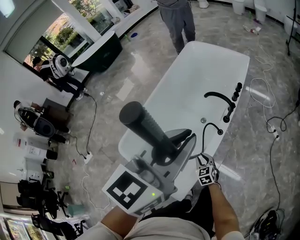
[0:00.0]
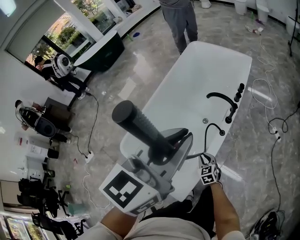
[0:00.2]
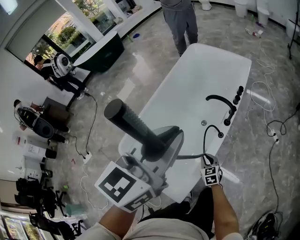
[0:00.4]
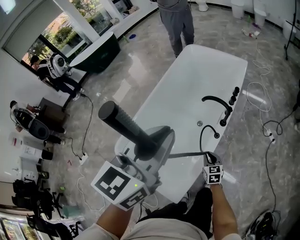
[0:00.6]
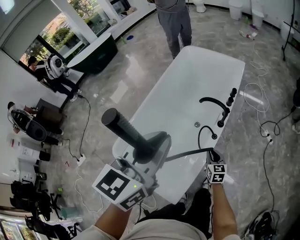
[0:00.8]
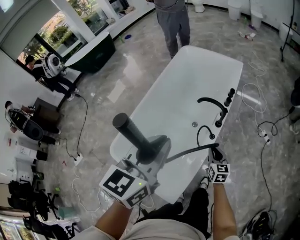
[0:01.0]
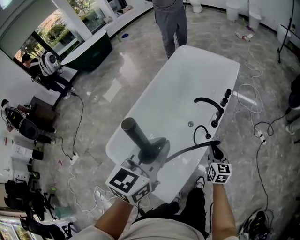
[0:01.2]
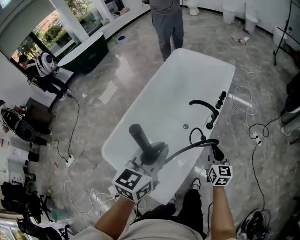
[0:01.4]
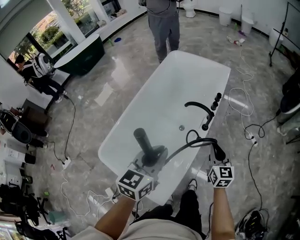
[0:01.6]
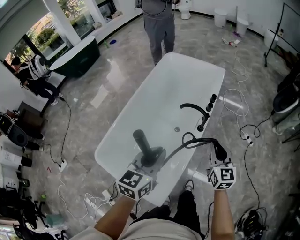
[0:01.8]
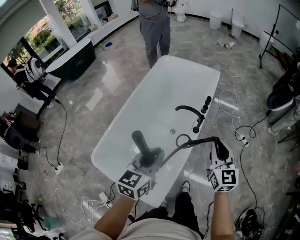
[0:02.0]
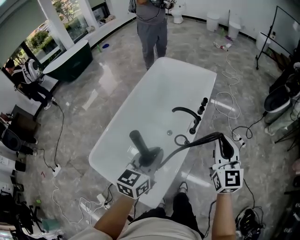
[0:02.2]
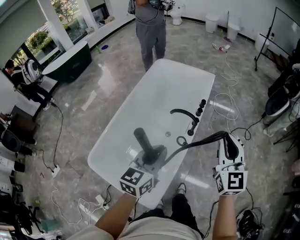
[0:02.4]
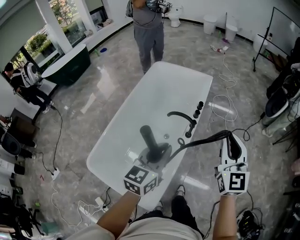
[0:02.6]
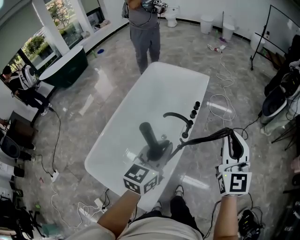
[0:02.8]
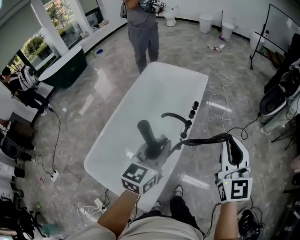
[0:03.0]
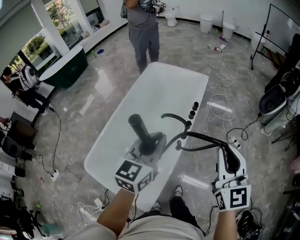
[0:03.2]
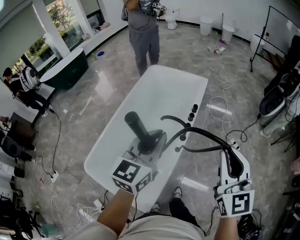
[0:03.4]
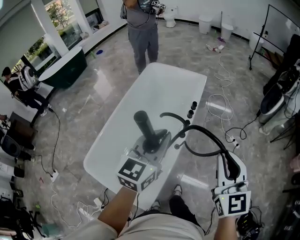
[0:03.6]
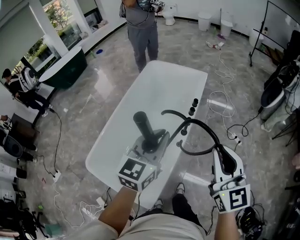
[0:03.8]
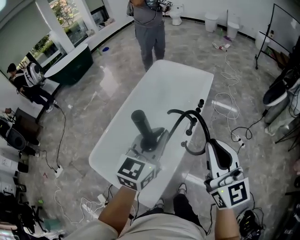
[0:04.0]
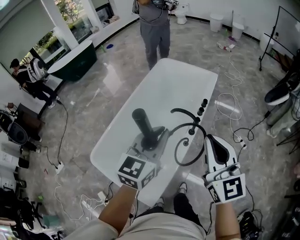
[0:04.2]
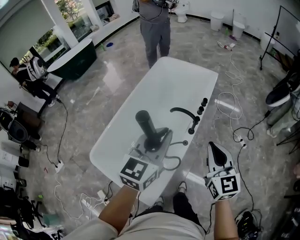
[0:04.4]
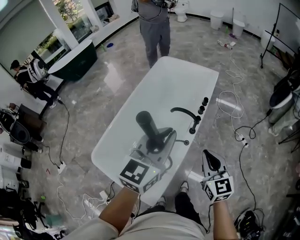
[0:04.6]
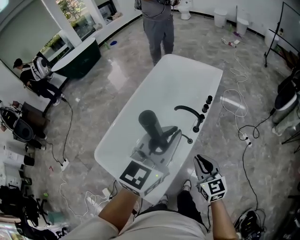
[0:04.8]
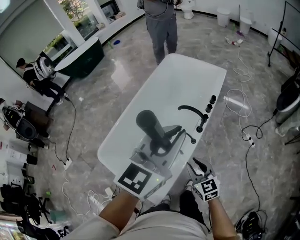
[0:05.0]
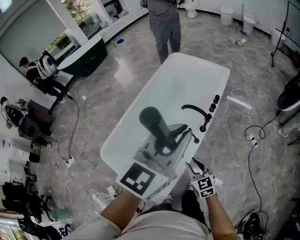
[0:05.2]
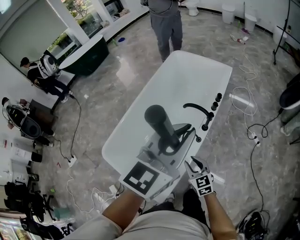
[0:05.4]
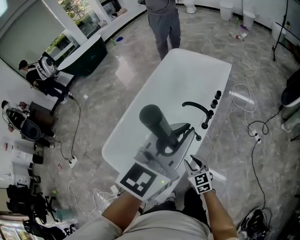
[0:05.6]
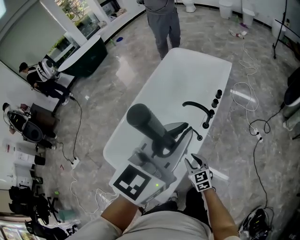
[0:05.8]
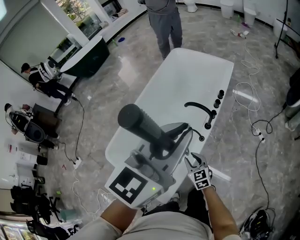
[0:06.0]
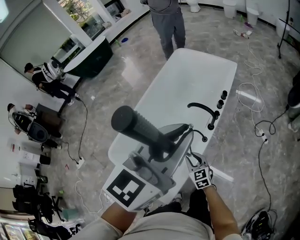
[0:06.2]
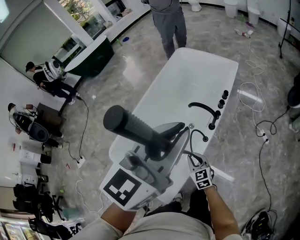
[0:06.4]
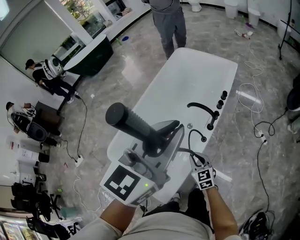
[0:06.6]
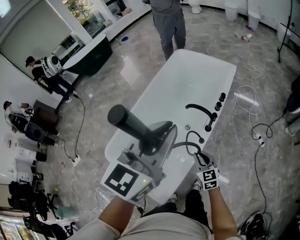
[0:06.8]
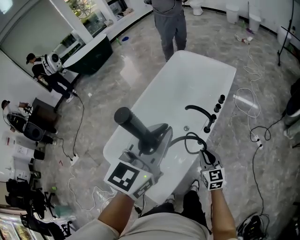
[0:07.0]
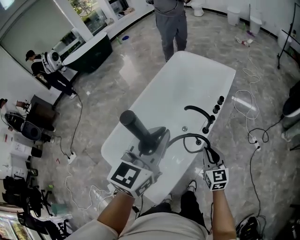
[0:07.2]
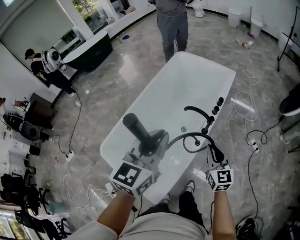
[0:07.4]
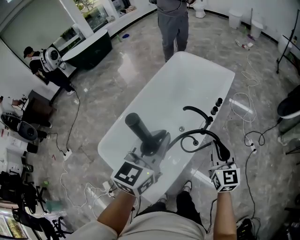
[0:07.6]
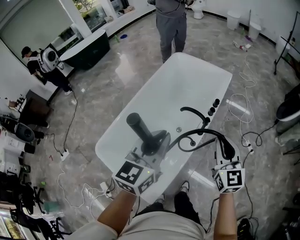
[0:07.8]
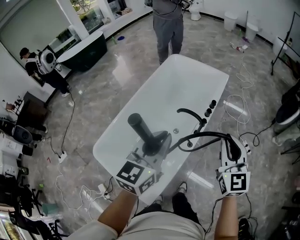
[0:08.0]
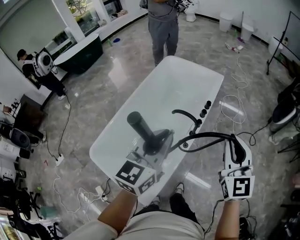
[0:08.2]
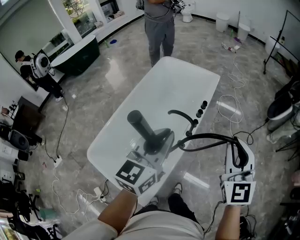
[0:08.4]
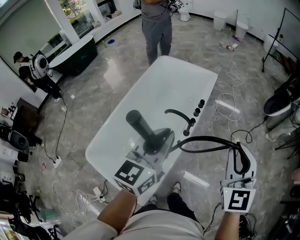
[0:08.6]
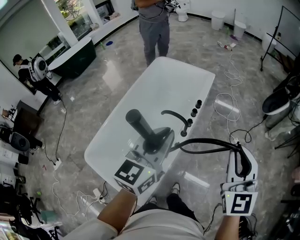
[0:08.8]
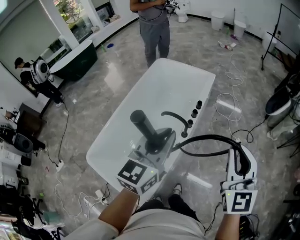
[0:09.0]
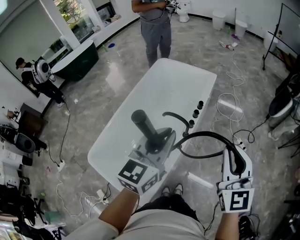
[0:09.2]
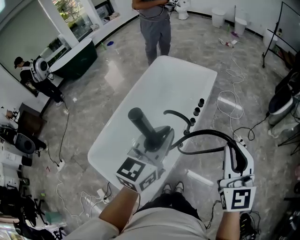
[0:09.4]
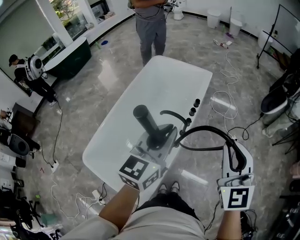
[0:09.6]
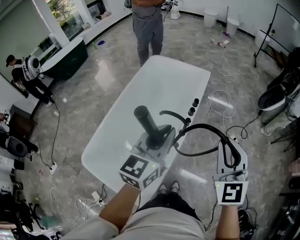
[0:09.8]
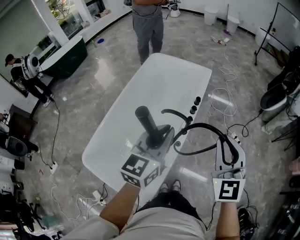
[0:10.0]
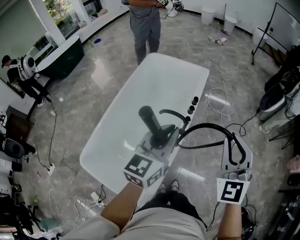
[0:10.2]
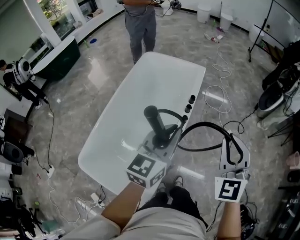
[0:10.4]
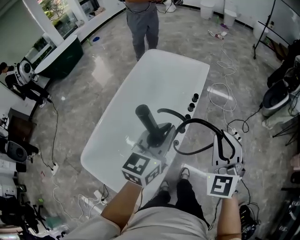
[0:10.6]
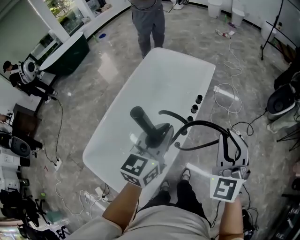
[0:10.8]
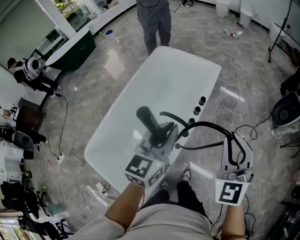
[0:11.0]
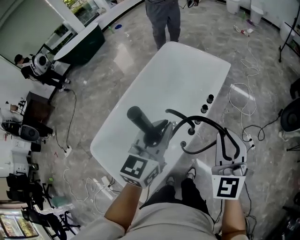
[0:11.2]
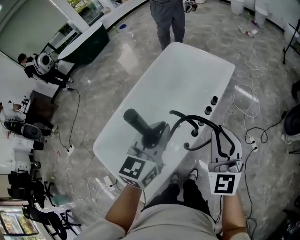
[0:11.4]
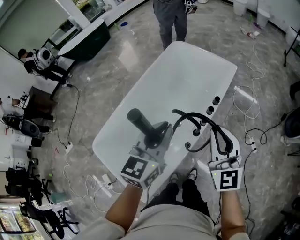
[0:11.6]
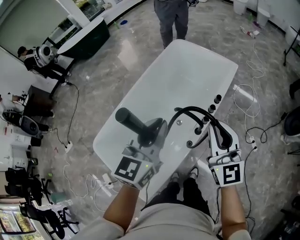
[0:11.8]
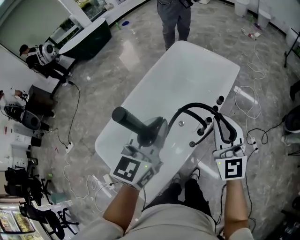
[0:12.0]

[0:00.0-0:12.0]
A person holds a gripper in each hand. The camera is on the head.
0:00.0 to 0:01.6: The left gripper heads downward, covering about 15 cm. The right gripper travels upward and to the right by roughly 25 cm, and rotates about 30 degrees.
0:01.6 to 0:03.0: The right gripper goes about 25 cm upward, and changes its angle by roughly 20 degrees. Meanwhile the left gripper is displaced to the right, forward and upward by about 15 cm.
0:03.0 to 0:04.4: The right gripper shifts about 10 cm downward and to the left.
0:04.4 to 0:06.0: The right gripper moves downward and to the left, some 30 cm, turns by some 30 degrees, and opens up, while the left gripper heads upward, covering about 10 cm.
0:06.0 to 0:07.6: The right gripper goes approximately 25 cm upward and to the right, and swivels roughly 20 degrees. Meanwhile the left gripper moves downward and to the left, some 10 cm.
0:07.6 to 0:09.0: The left gripper is displaced to the right by approximately 10 cm. Meanwhile the right gripper is displaced upward and to the right by roughly 20 cm, and swivels some 20 degrees.
0:09.0 to 0:10.4: The left gripper shifts by some 5 cm. Meanwhile the right gripper goes some 5 cm to the left, and swivels roughly 20 degrees.
0:10.4 to 0:12.0: The left gripper changes place by about 10 cm, and swivels approximately 20 degrees, while the right gripper ends up roughly 15 cm from where it was, and swivels about 40 degrees.

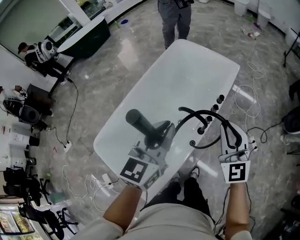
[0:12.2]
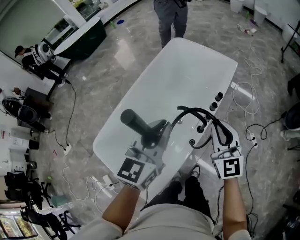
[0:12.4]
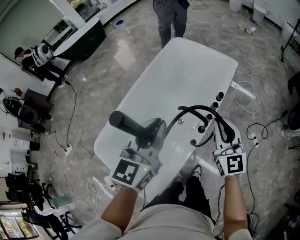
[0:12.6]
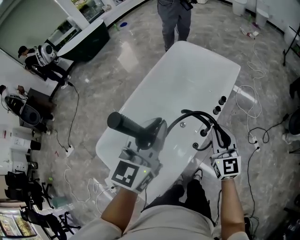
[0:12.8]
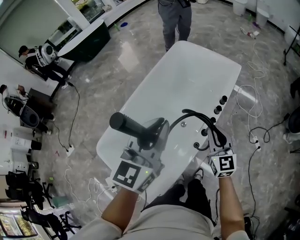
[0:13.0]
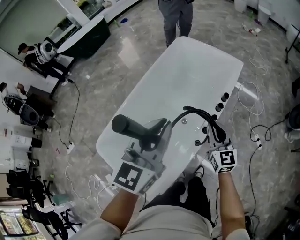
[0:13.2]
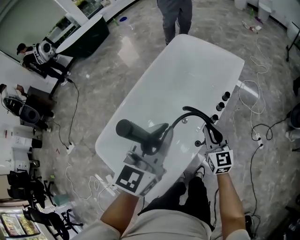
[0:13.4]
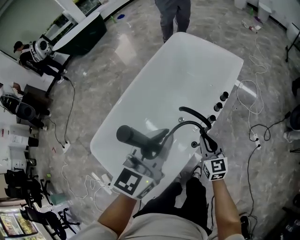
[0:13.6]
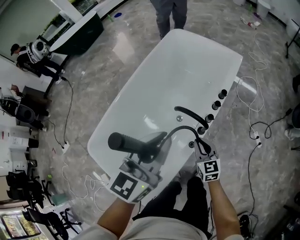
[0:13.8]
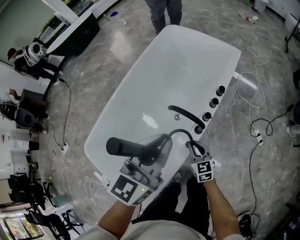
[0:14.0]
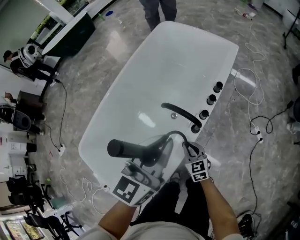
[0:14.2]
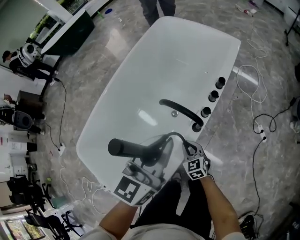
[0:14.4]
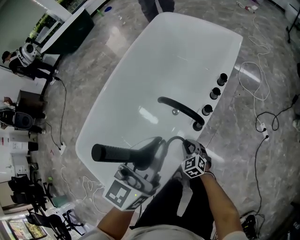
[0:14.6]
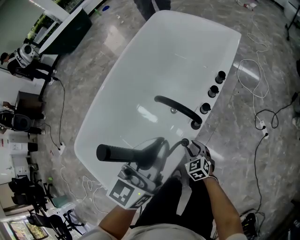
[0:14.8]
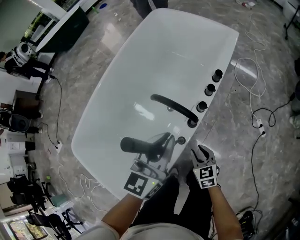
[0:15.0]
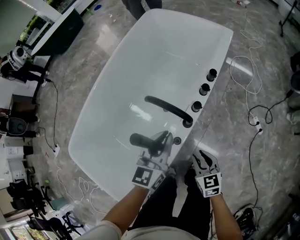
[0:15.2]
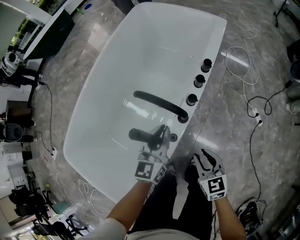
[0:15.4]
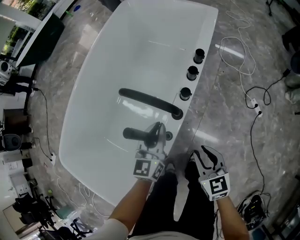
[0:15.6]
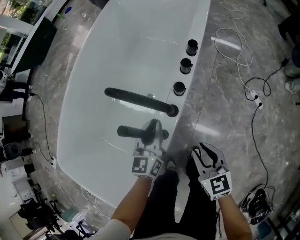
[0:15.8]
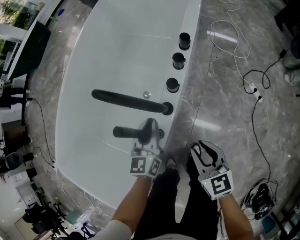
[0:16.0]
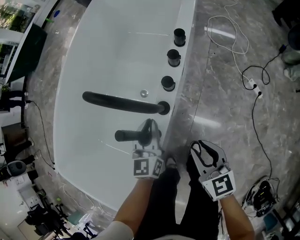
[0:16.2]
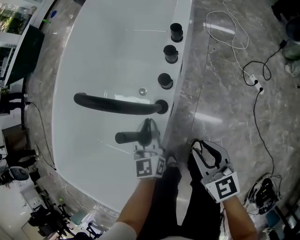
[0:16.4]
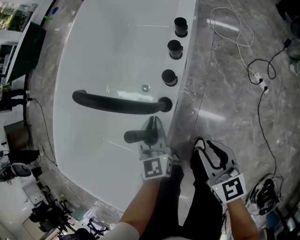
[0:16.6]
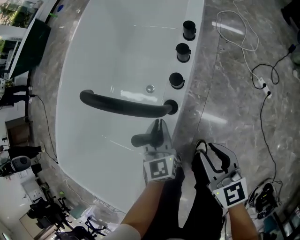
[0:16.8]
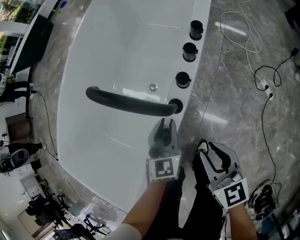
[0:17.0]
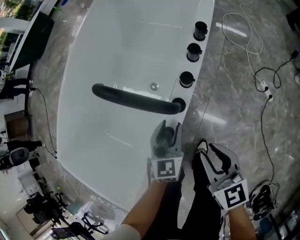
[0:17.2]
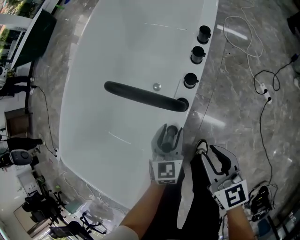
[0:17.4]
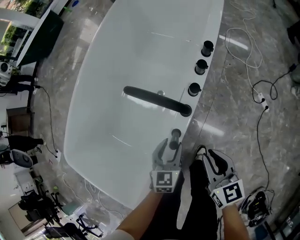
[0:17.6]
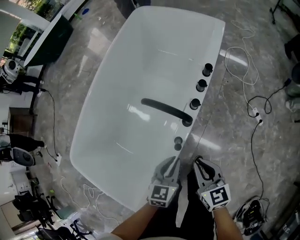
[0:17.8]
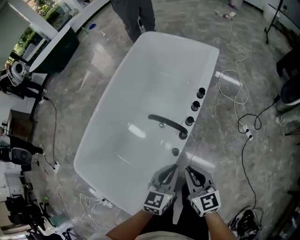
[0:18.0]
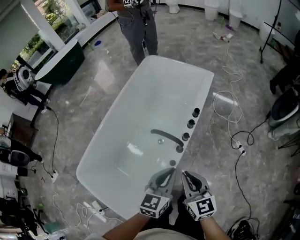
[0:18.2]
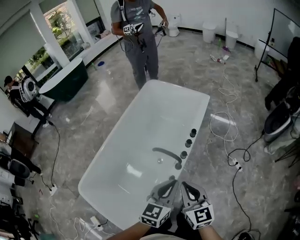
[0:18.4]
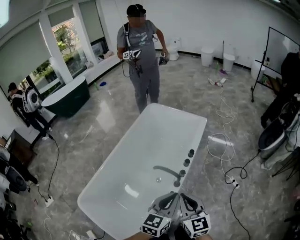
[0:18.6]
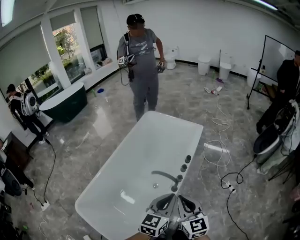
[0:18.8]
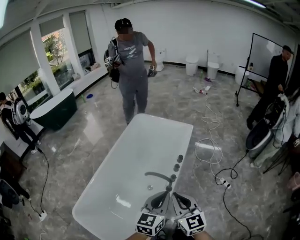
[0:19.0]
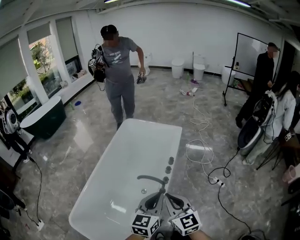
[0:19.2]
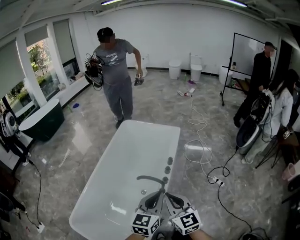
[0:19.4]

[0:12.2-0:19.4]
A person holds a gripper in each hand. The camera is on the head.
0:12.2 to 0:13.6: The right gripper goes approximately 25 cm downward, and turns by roughly 30 degrees.
0:13.6 to 0:15.0: The right gripper goes approximately 25 cm downward, and rotates approximately 20 degrees; the left gripper moves downward and to the right, approximately 20 cm.
0:15.0 to 0:16.6: The left gripper heads downward, covering about 25 cm, while the right gripper moves to the right, some 10 cm.
0:16.6 to 0:18.0: The left gripper moves upward and backward, about 25 cm, turns by roughly 20 degrees, and opens and closes again. Meanwhile the right gripper travels upward and to the left by some 20 cm, and closes.
0:18.0 to 0:19.4: The two grippers go approximately 20 cm upward. The right gripper rotates roughly 20 degrees.

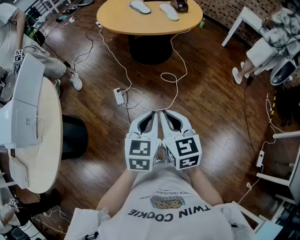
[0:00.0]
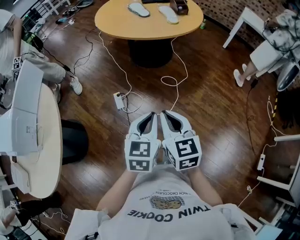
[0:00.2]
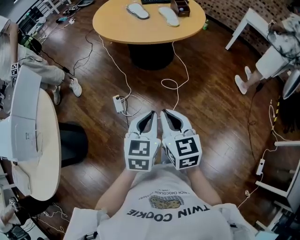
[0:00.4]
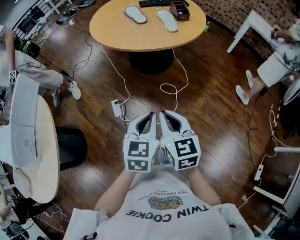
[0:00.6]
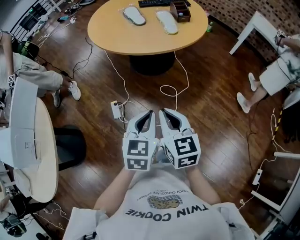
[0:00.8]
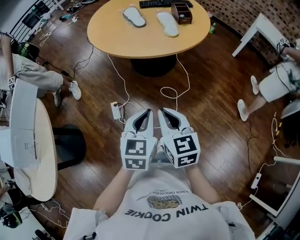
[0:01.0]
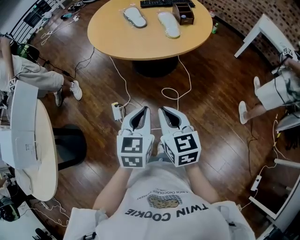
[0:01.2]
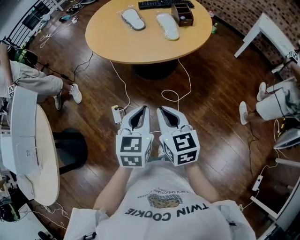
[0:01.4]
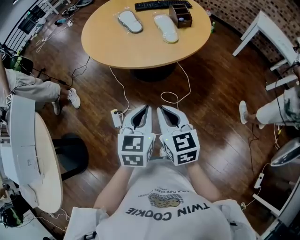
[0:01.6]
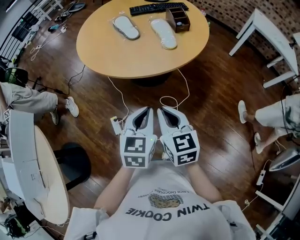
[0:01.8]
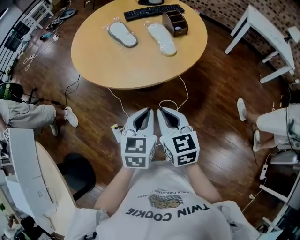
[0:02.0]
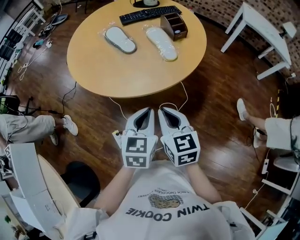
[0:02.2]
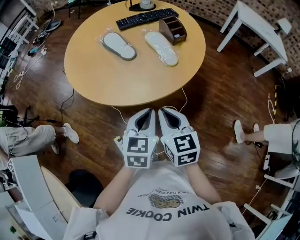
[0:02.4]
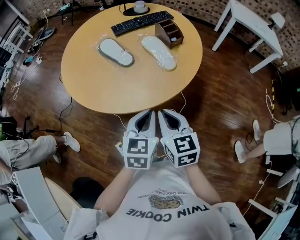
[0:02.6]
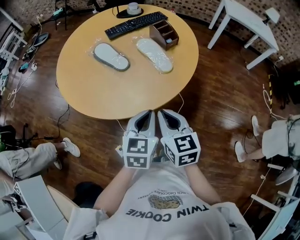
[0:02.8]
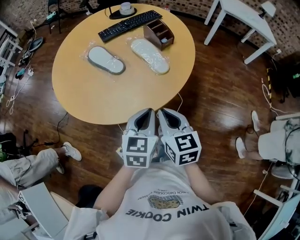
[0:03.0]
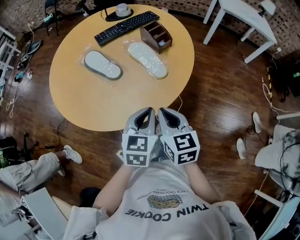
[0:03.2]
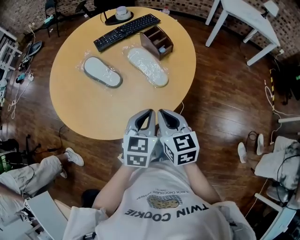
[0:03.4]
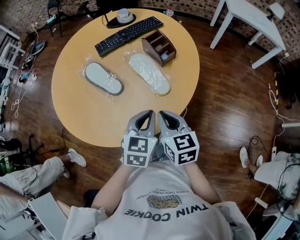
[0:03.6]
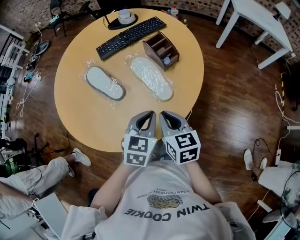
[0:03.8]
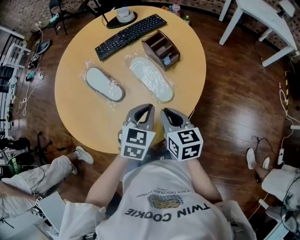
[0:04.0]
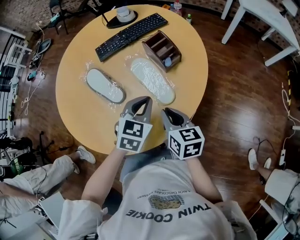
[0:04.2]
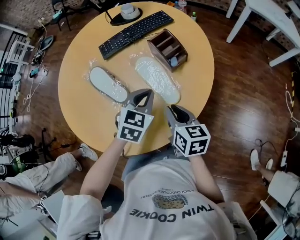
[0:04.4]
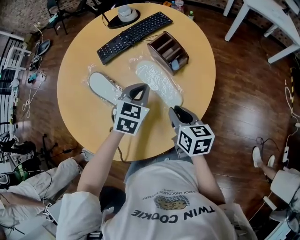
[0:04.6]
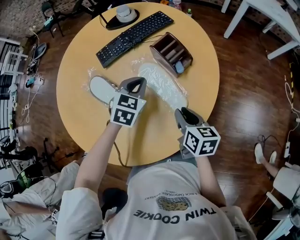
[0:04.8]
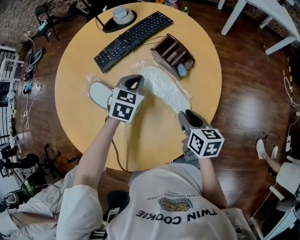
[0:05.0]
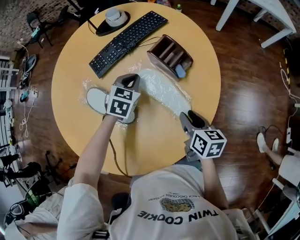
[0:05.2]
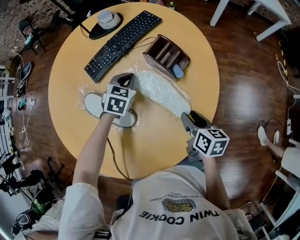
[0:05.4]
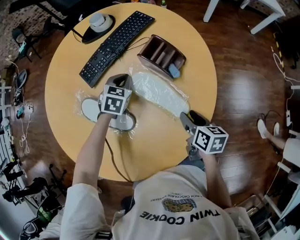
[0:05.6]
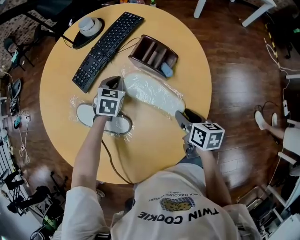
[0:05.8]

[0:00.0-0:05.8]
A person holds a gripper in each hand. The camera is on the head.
0:00.0 to 0:01.4: The left gripper moves forward, about 30 cm. Meanwhile the right gripper shifts about 30 cm forward and to the right.
0:01.4 to 0:02.8: The right gripper changes place by roughly 25 cm, and changes its angle by about 20 degrees. The left gripper changes place by some 30 cm, and changes its angle by about 30 degrees.
0:02.8 to 0:04.4: The grippers both shift forward by about 25 cm. The right gripper changes its angle by roughly 20 degrees, while the left gripper turns by about 20 degrees.
0:04.4 to 0:05.8: The right gripper travels downward by some 10 cm, changes its angle by approximately 30 degrees, and opens up. The left gripper travels forward, downward and to the left by approximately 25 cm.
